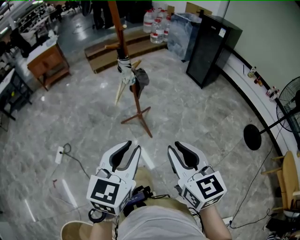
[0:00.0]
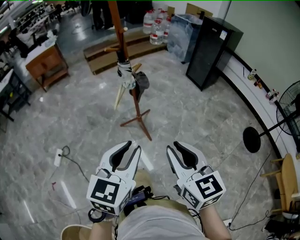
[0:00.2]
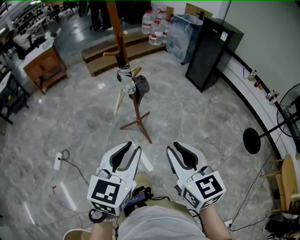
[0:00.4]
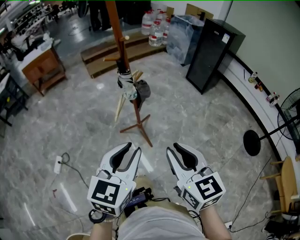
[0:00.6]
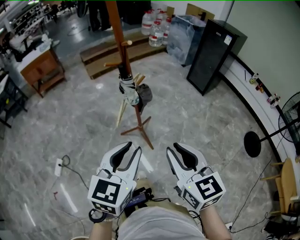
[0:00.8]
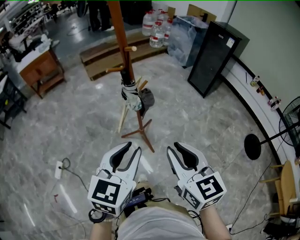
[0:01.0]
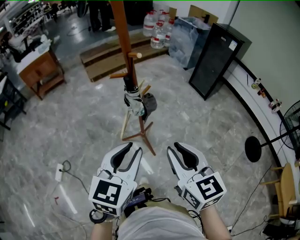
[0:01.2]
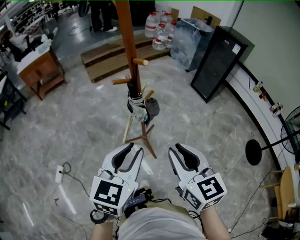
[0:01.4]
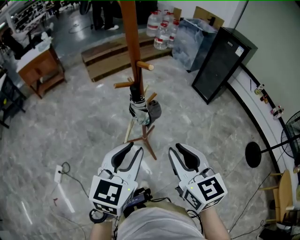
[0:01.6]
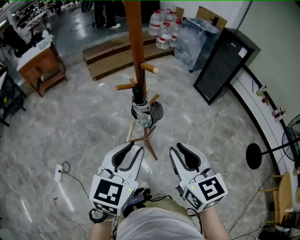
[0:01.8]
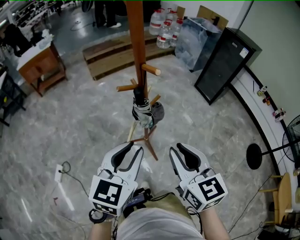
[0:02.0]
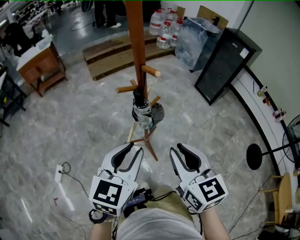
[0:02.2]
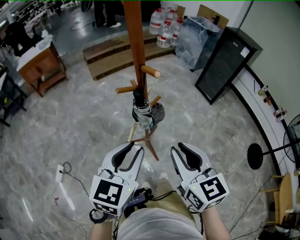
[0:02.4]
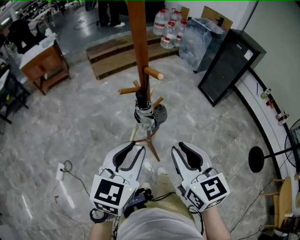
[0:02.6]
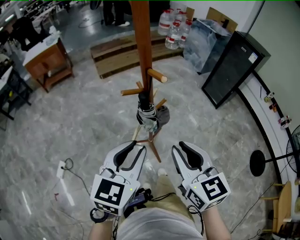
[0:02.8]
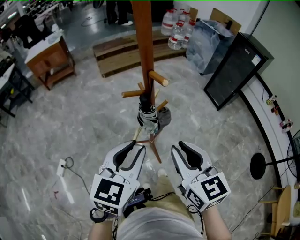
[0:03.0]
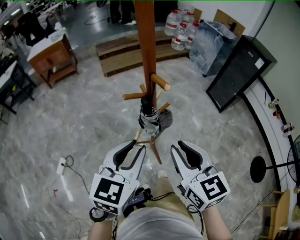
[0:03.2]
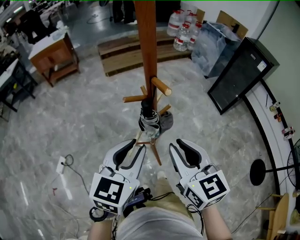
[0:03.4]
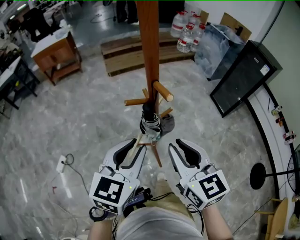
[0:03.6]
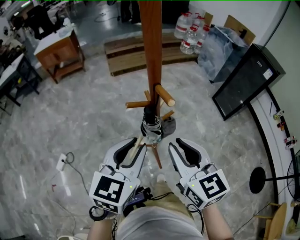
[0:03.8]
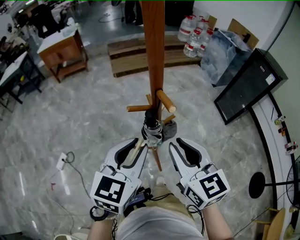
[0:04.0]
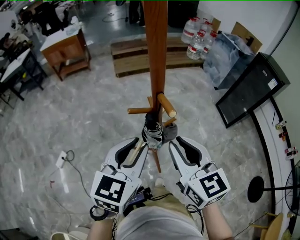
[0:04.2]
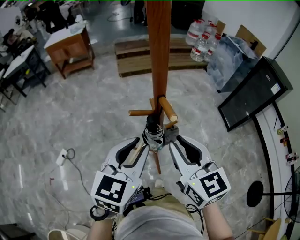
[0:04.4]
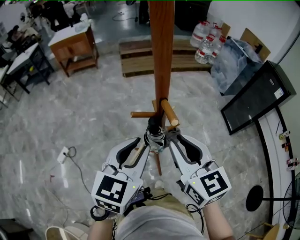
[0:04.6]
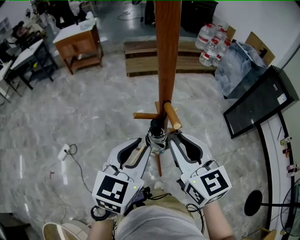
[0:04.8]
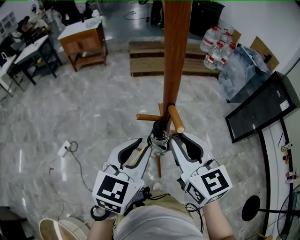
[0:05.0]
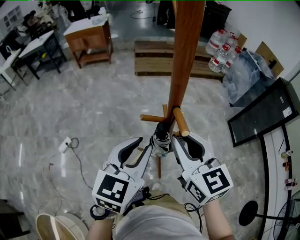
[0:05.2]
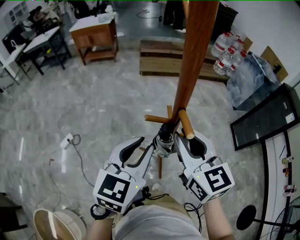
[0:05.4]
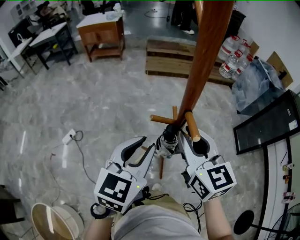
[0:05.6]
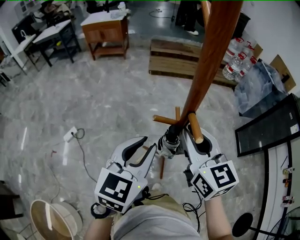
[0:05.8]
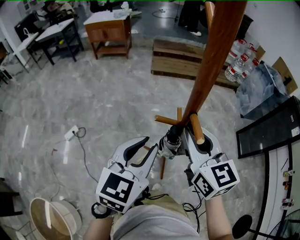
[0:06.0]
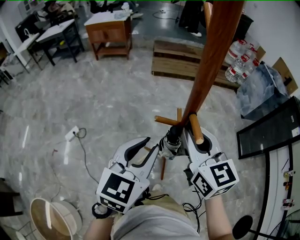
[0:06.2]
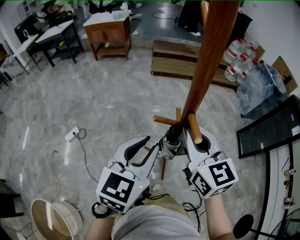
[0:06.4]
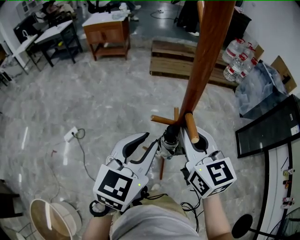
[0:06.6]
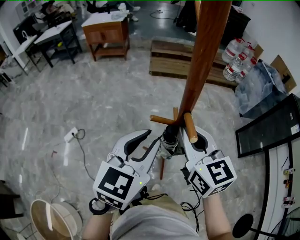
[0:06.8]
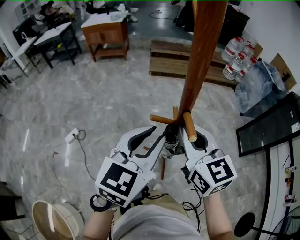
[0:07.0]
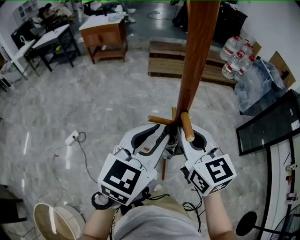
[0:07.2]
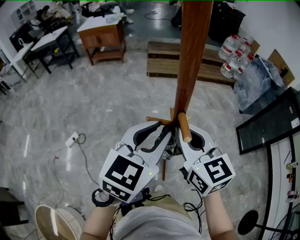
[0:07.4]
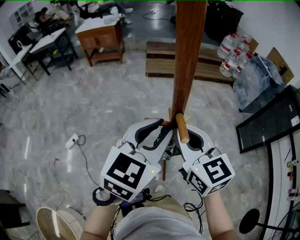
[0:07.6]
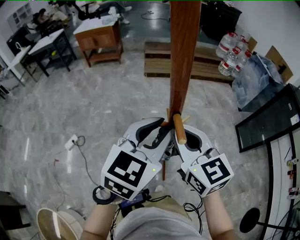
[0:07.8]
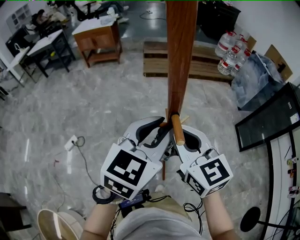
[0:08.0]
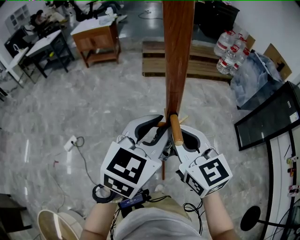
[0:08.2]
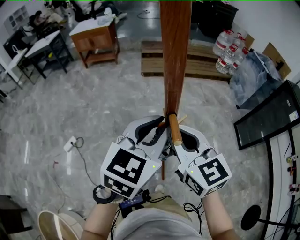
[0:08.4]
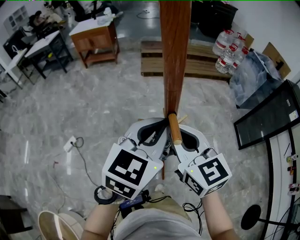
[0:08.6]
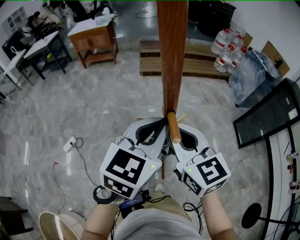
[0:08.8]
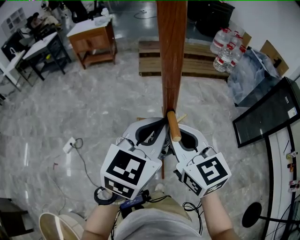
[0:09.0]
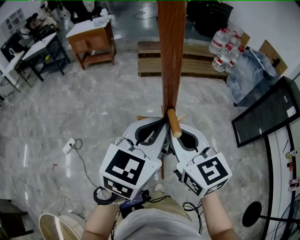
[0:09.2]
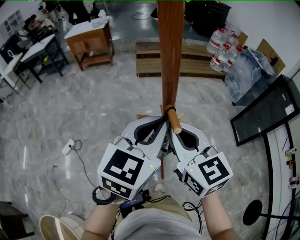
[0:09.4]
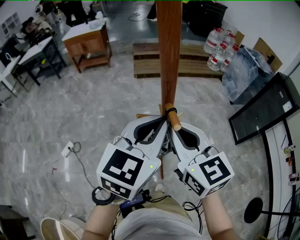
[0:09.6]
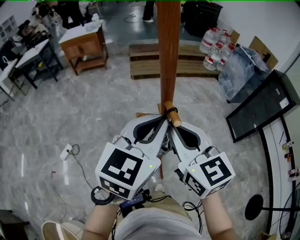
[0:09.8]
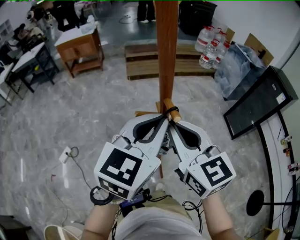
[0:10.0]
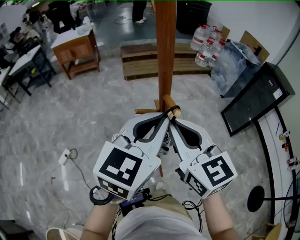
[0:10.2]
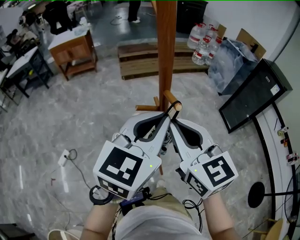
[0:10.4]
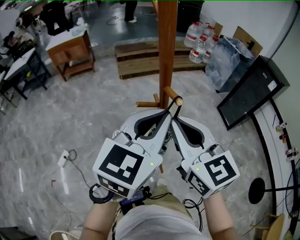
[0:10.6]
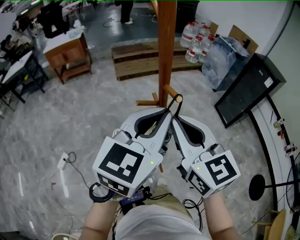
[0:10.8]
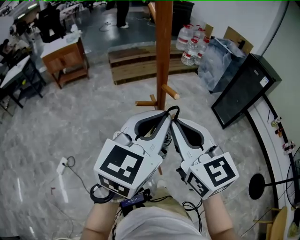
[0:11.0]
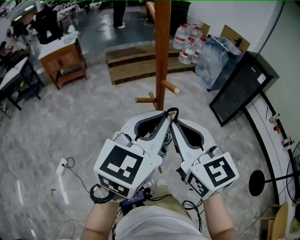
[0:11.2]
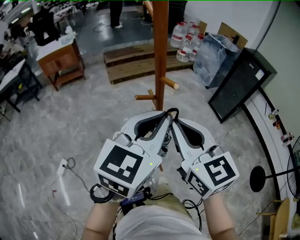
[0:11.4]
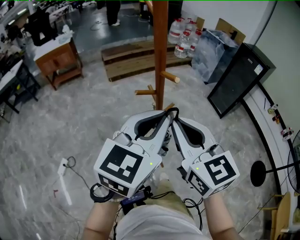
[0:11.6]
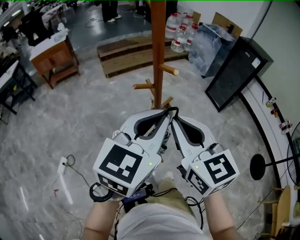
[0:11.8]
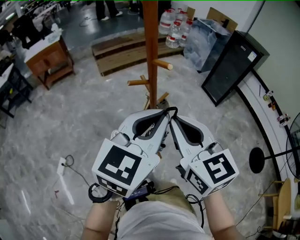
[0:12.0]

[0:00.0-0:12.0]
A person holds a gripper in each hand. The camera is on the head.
0:00.0 to 0:01.6: The two grippers go roughly 25 cm forward.
0:01.6 to 0:03.0: The two grippers go roughly 5 cm forward.
0:03.0 to 0:04.4: Both grippers travel together forward, approximately 10 cm.
0:04.4 to 0:06.0: The right gripper shifts approximately 10 cm forward.
0:06.0 to 0:07.6: The left gripper moves to the right, about 5 cm.
0:07.6 to 0:09.0: The left gripper closes its fingers.
0:09.0 to 0:10.4: The two grippers go about 5 cm backward.
0:10.4 to 0:12.0: Both grippers travel together backward, roughly 10 cm.

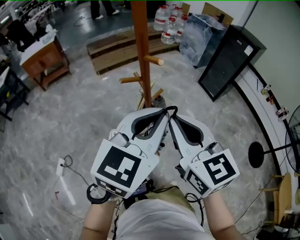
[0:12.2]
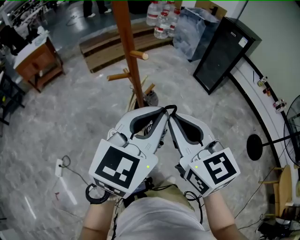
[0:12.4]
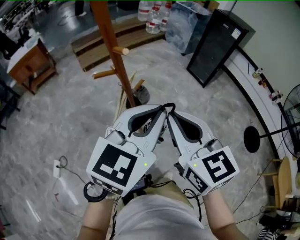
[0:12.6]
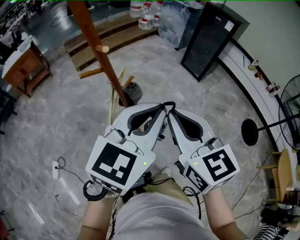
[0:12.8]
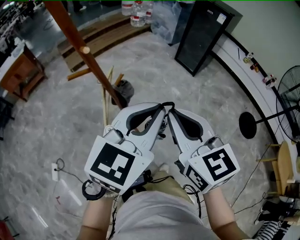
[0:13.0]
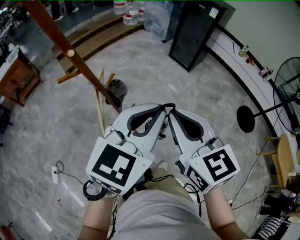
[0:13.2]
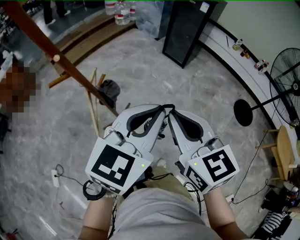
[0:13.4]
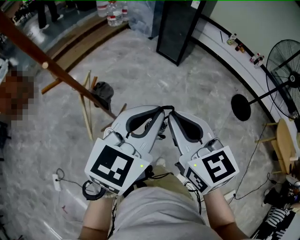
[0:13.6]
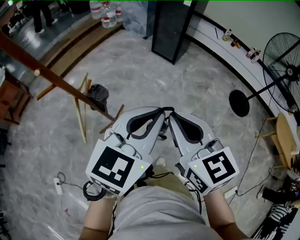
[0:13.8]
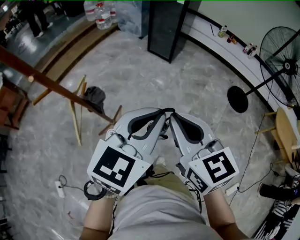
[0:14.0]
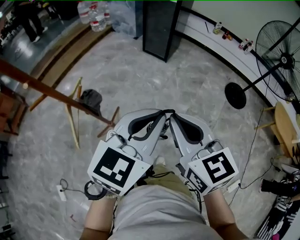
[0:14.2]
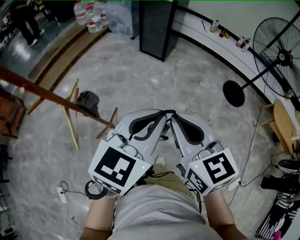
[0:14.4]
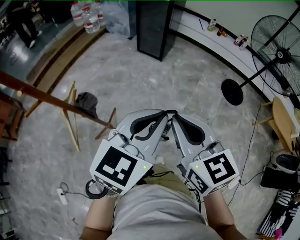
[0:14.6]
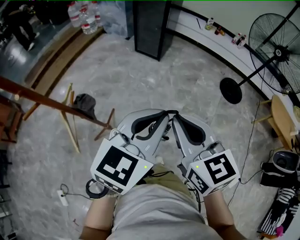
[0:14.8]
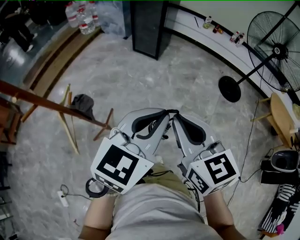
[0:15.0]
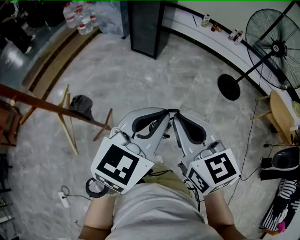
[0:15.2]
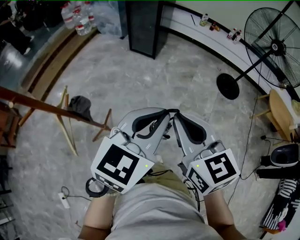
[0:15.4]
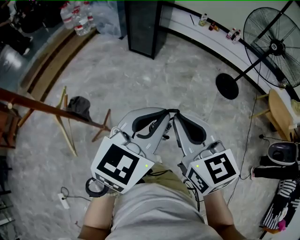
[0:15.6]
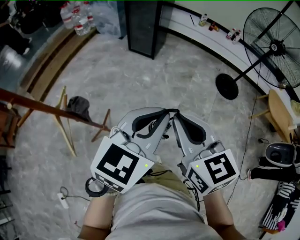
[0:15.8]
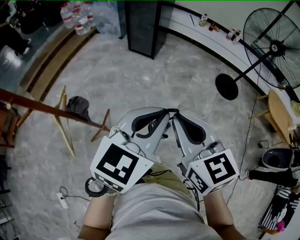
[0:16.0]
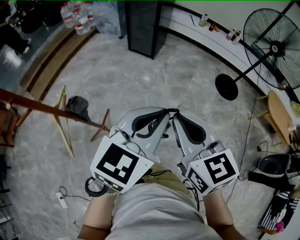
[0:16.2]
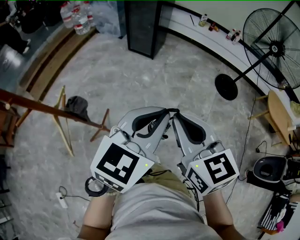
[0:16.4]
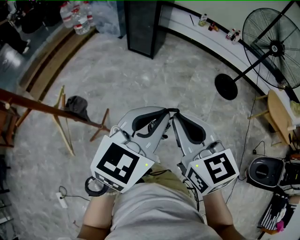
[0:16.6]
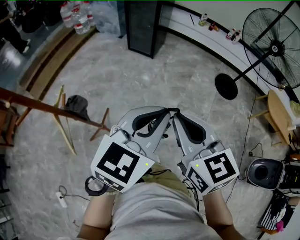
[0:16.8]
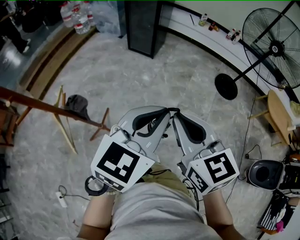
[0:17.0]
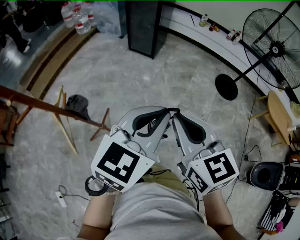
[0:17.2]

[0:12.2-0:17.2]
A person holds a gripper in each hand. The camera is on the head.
0:12.2 to 0:13.8: Both grippers move to the right, some 20 cm. The left gripper rotates some 30 degrees; the right gripper turns by some 20 degrees.
0:13.8 to 0:15.6: The grippers both shift to the right by roughly 10 cm.
0:15.6 to 0:17.2: Neither gripper changes place.

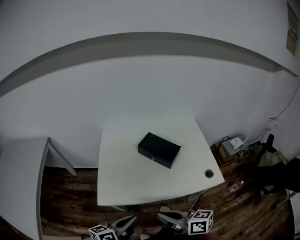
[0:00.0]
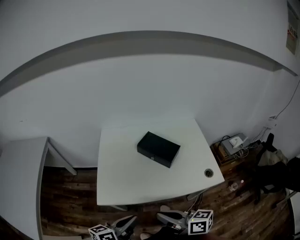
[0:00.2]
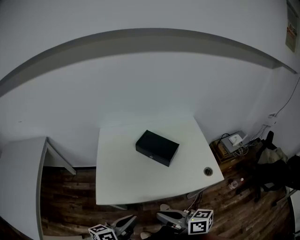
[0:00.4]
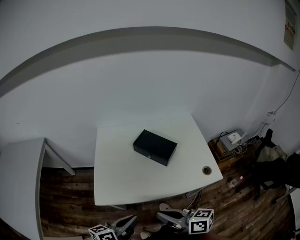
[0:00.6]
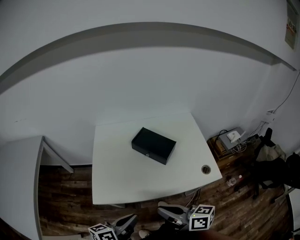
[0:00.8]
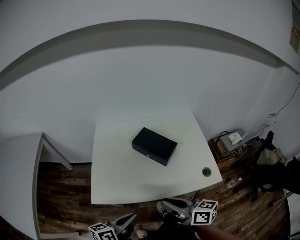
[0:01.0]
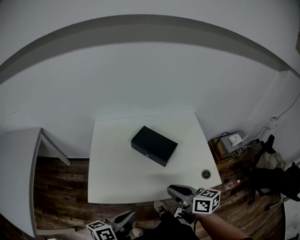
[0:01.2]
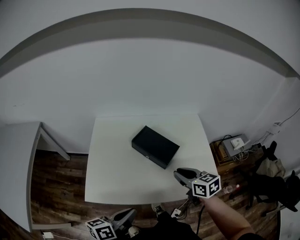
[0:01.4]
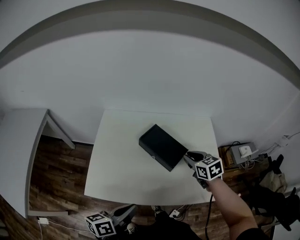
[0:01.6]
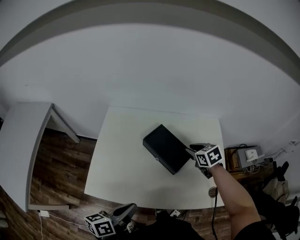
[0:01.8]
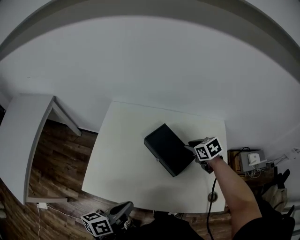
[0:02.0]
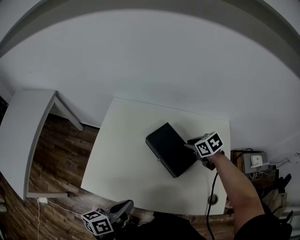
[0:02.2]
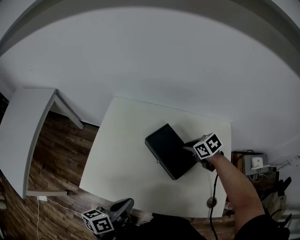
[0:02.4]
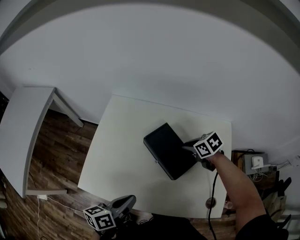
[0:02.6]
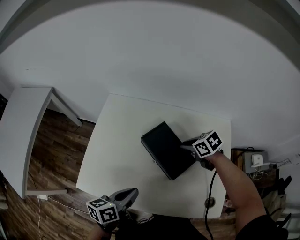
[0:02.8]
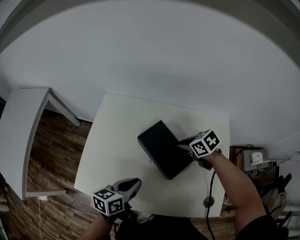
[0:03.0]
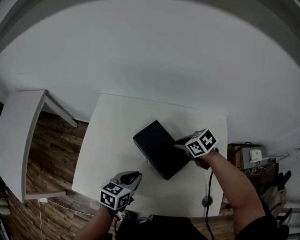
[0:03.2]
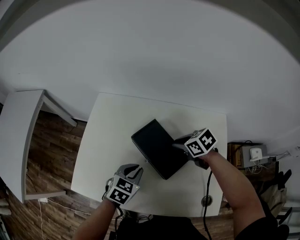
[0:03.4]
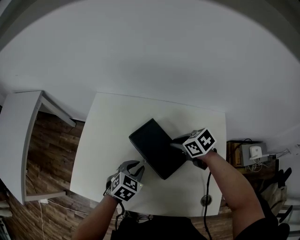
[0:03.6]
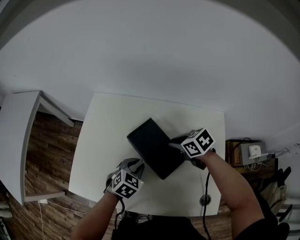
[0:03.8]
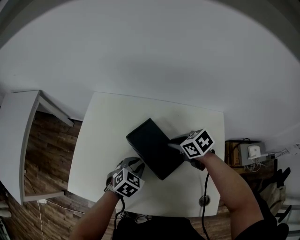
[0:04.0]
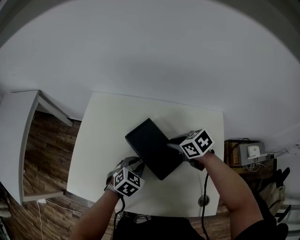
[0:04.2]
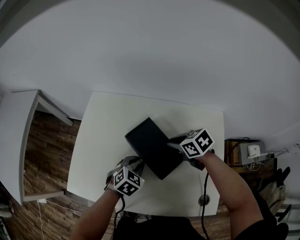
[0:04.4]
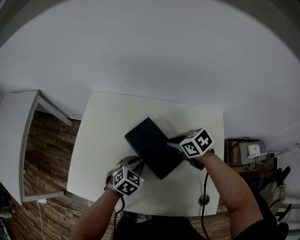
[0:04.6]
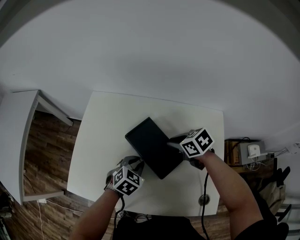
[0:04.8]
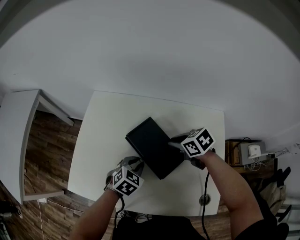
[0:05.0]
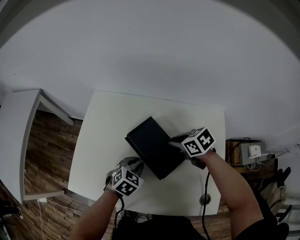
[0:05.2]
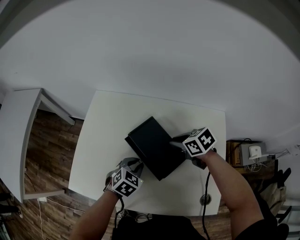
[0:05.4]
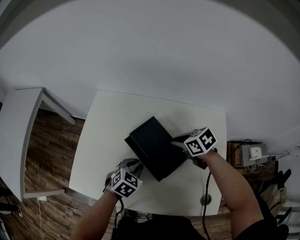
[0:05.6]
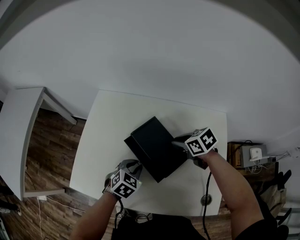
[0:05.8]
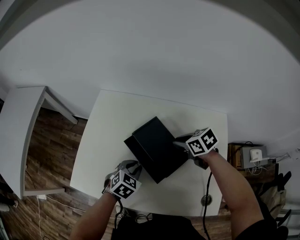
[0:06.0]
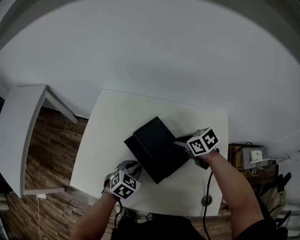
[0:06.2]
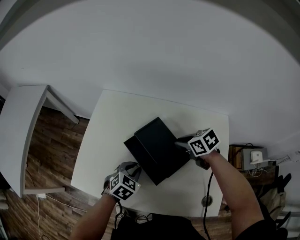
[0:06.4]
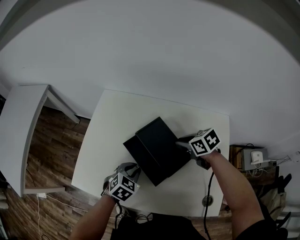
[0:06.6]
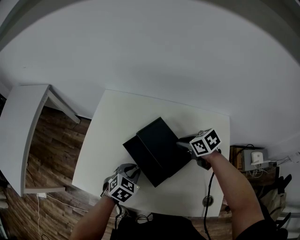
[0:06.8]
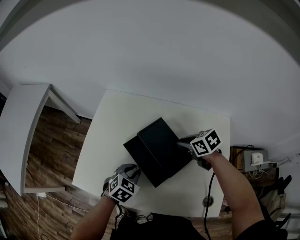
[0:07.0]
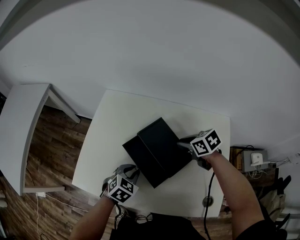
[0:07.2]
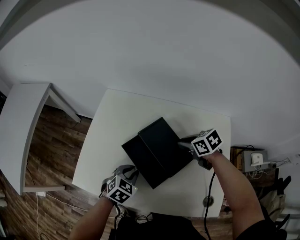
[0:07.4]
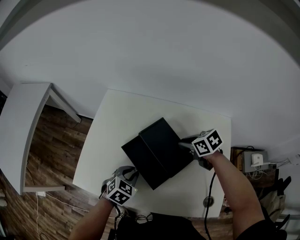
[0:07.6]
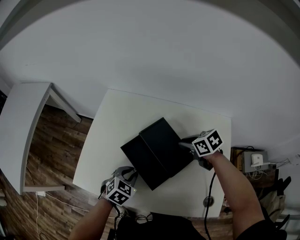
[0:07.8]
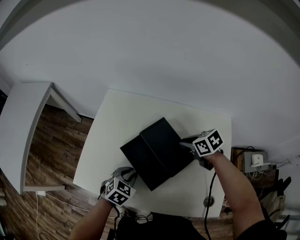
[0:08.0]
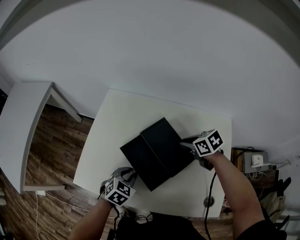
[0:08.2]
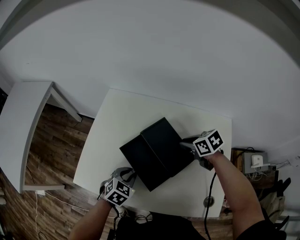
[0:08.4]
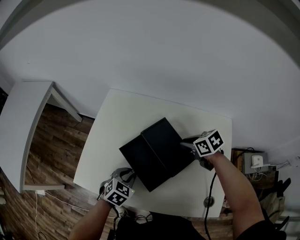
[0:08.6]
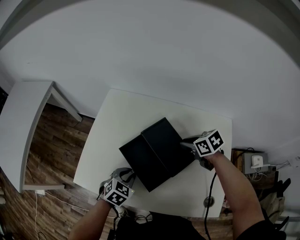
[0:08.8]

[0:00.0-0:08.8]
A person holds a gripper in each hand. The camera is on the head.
0:00.0 to 0:01.4: The right gripper heads forward and to the right, covering approximately 25 cm, and rotates about 40 degrees. Meanwhile the left gripper moves to the right and forward, some 10 cm.
0:01.4 to 0:03.0: The left gripper changes place by some 20 cm, and rotates approximately 20 degrees, while the right gripper changes place by roughly 25 cm, and swivels about 40 degrees.
0:03.0 to 0:04.4: The left gripper travels downward, to the right and forward by roughly 15 cm, and rotates around the line of its fingers by roughly 50 degrees, clockwise from behind.
0:04.4 to 0:05.8: The grippers move only a little.
0:05.8 to 0:07.4: The grippers stay close to where they were, moving slightly.
0:07.4 to 0:08.8: The grippers stay close to where they were, moving slightly.
